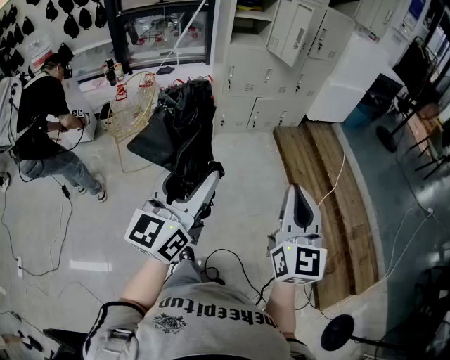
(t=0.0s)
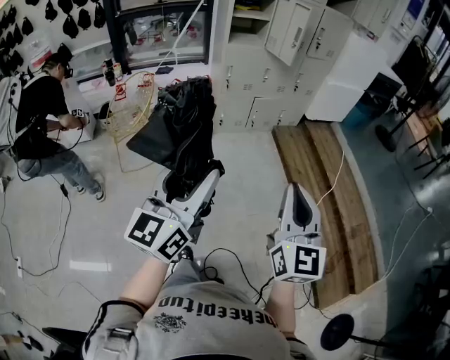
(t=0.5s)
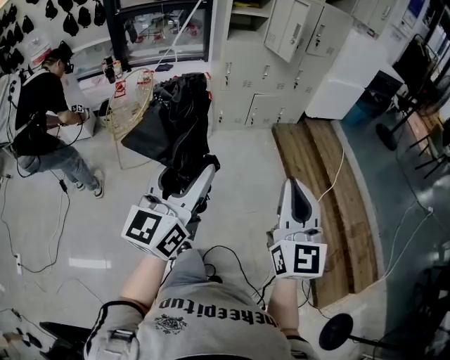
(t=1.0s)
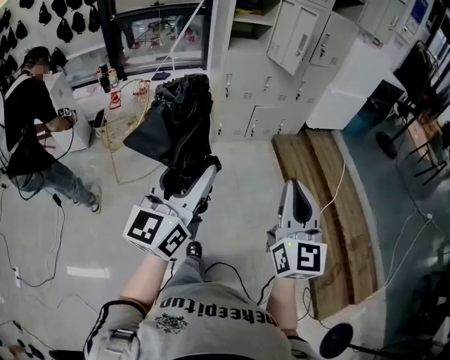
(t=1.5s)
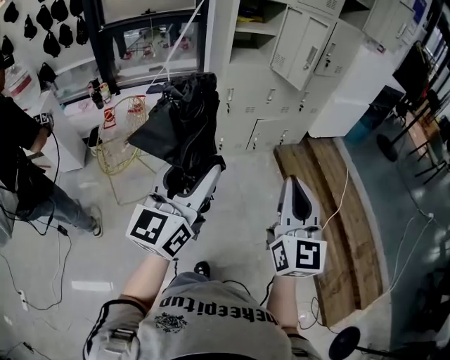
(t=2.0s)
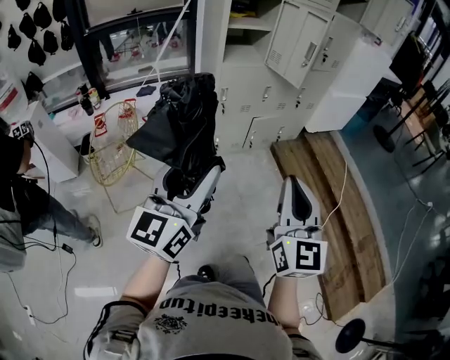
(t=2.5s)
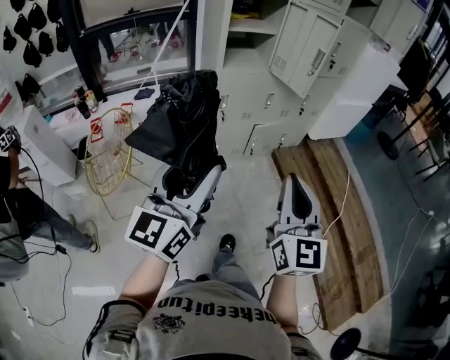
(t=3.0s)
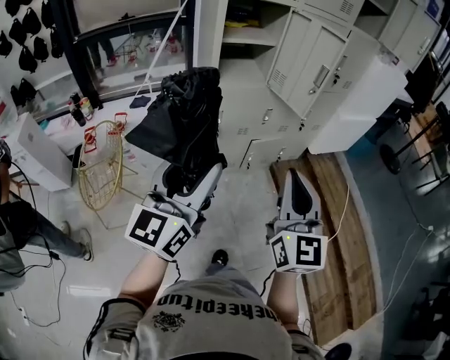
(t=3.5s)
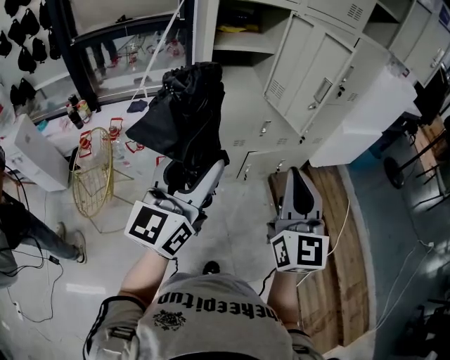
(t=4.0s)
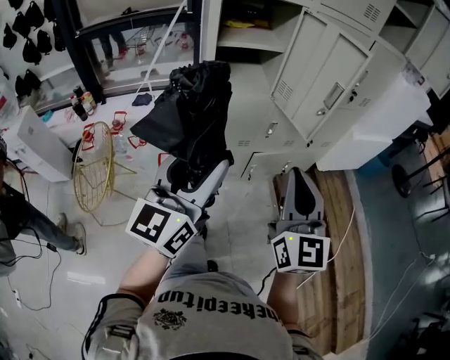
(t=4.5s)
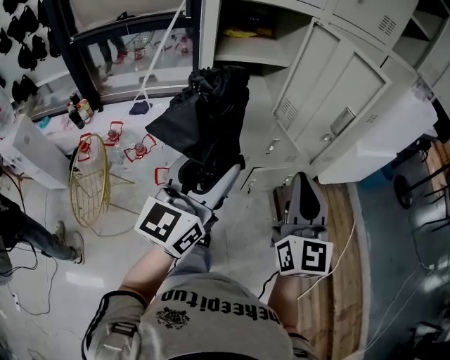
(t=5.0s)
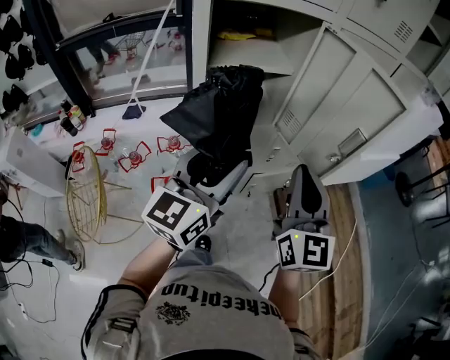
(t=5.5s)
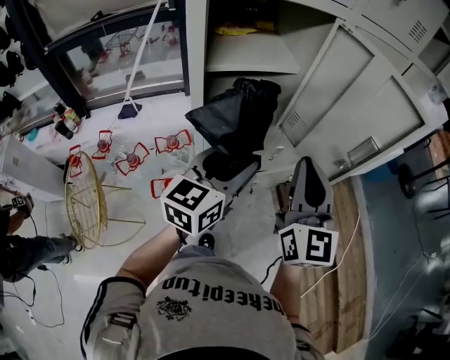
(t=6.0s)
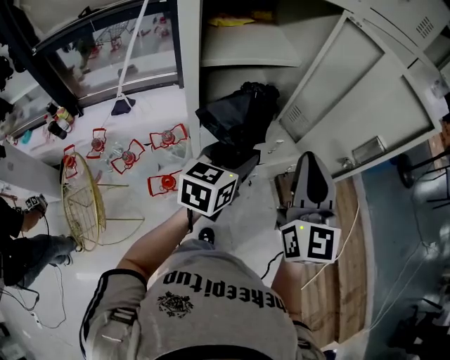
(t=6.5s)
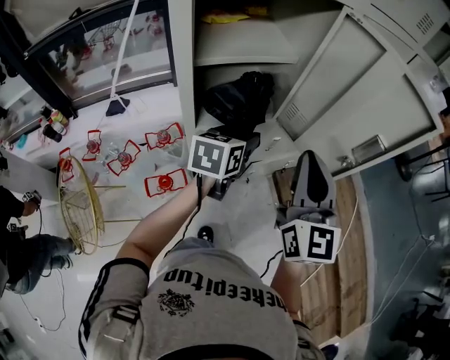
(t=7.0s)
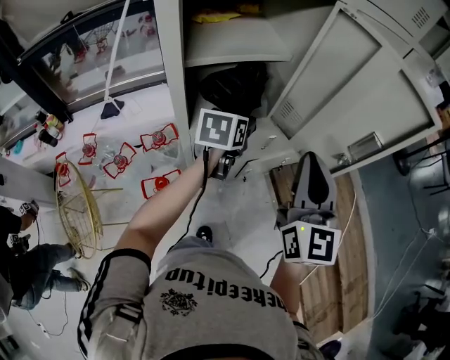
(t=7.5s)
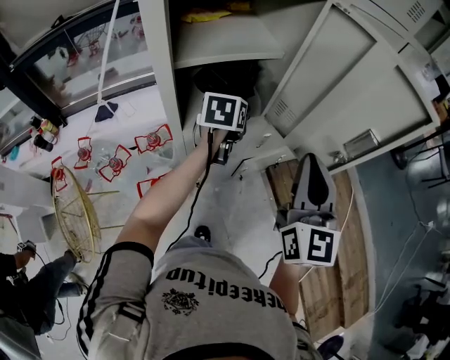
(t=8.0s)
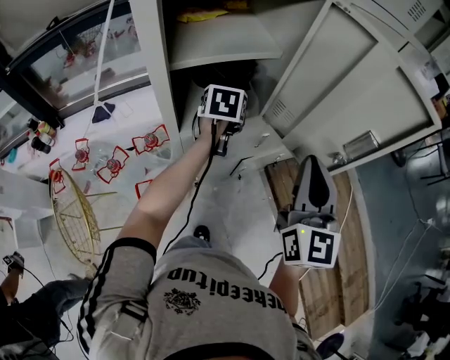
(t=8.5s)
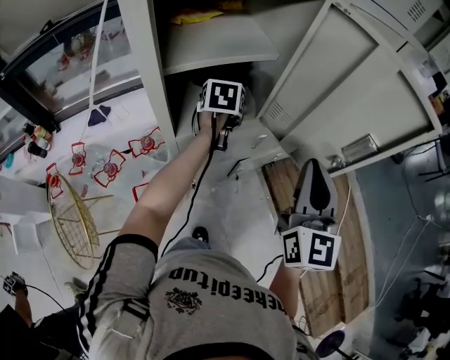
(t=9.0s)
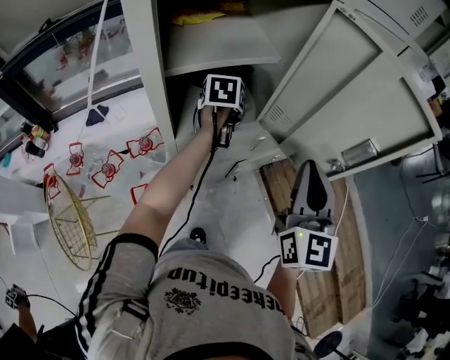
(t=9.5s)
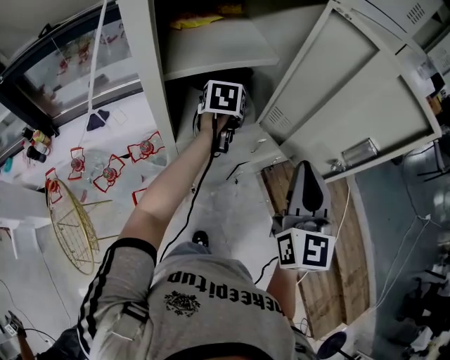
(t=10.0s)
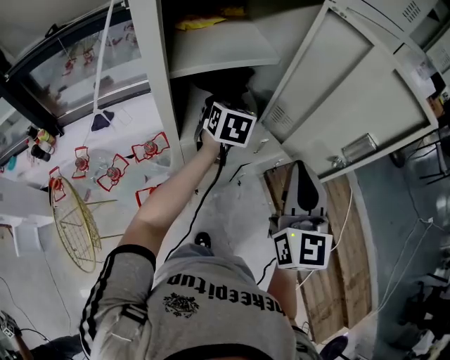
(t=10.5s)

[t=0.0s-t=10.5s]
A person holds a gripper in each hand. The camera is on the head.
t=0.0s to t=2.0s: The grippers both shift forward and to the left by approximately 25 cm.
t=2.0s to t=4.0s: The grippers both shift forward by some 40 cm.
t=4.0s to t=6.5s: The right gripper heads forward, covering approximately 30 cm; the left gripper heads forward and downward, covering about 40 cm, and points its fingers roughly 30 degrees further downward.
t=6.5s to t=8.5s: The left gripper heads forward, covering some 20 cm, and changes its angle by approximately 20 degrees.
t=8.5s to t=10.5s: There are only small adjustments of the grippers.

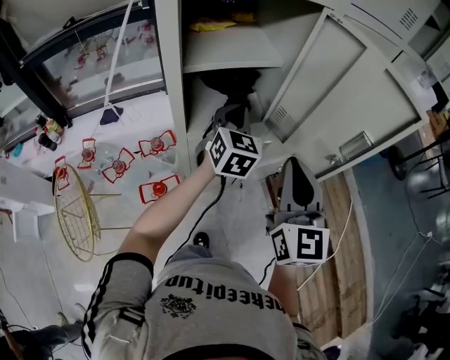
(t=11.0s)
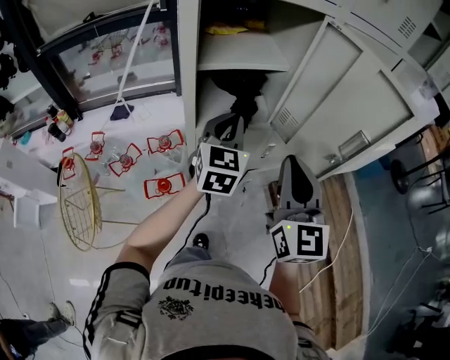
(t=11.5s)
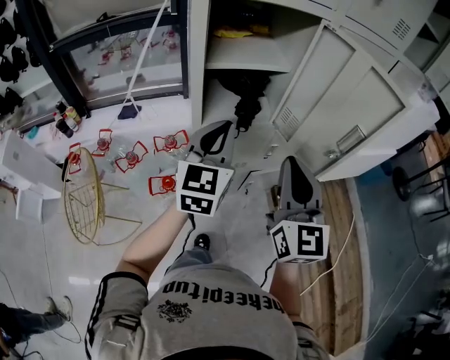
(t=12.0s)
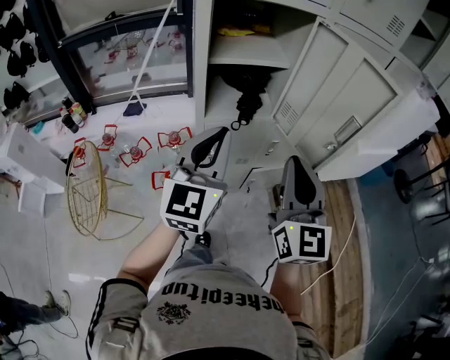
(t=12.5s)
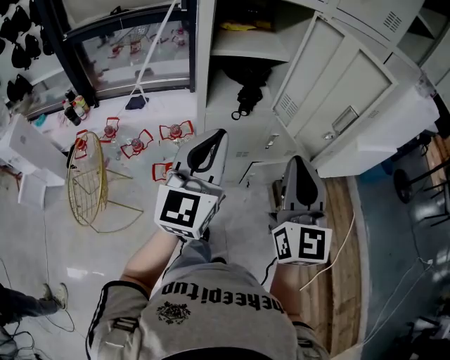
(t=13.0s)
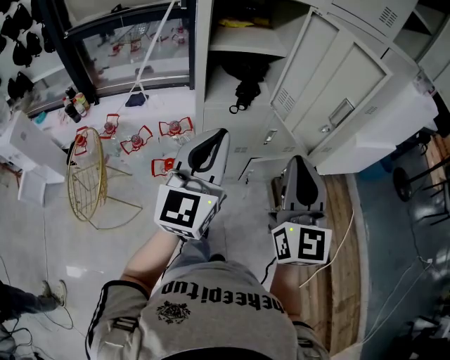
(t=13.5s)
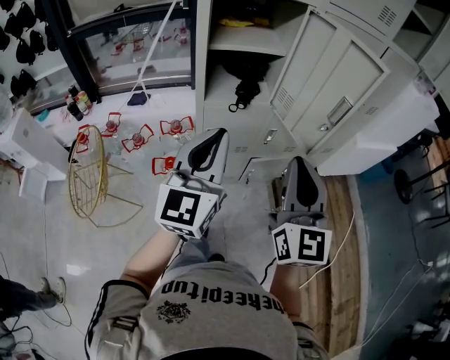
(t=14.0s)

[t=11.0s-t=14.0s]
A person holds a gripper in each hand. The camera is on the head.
t=11.0s to t=12.5s: The left gripper heads backward and upward, covering some 25 cm, and rotates about 30 degrees. The right gripper heads backward, covering about 10 cm.
t=12.5s to t=14.0s: Both grippers travel together backward, approximately 5 cm.

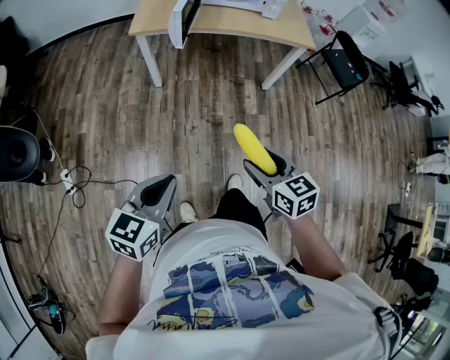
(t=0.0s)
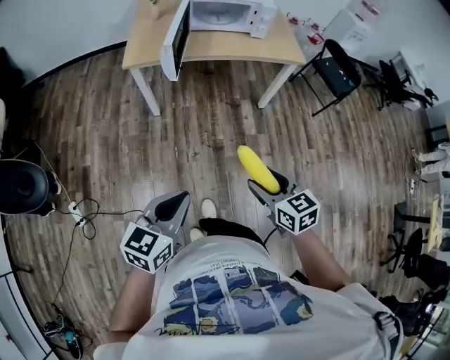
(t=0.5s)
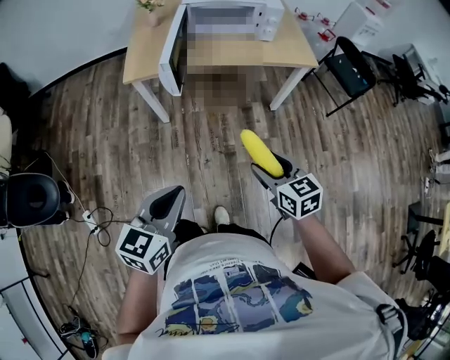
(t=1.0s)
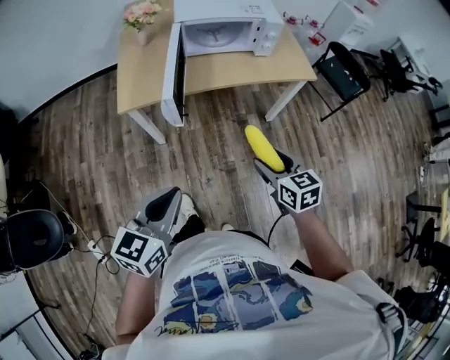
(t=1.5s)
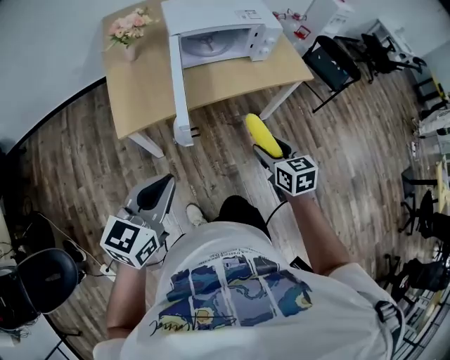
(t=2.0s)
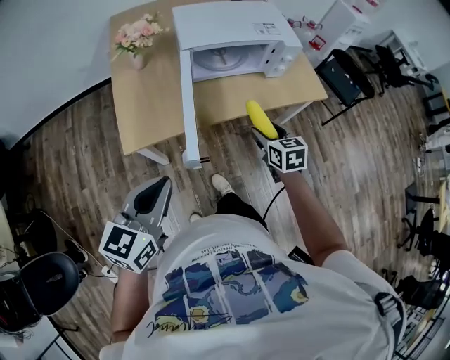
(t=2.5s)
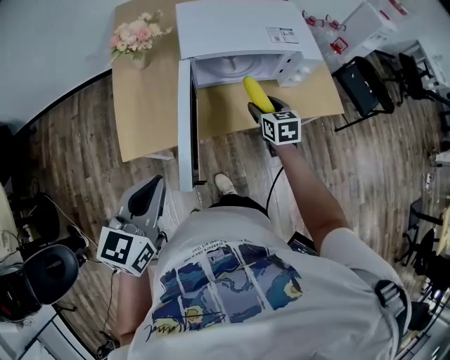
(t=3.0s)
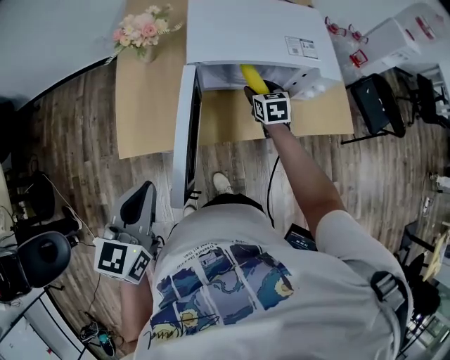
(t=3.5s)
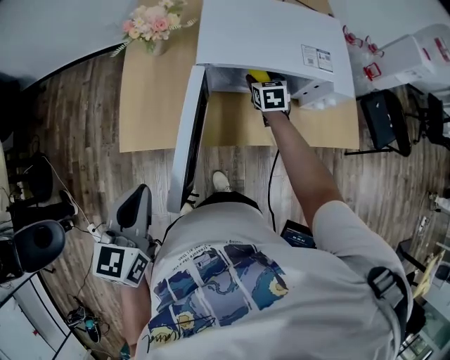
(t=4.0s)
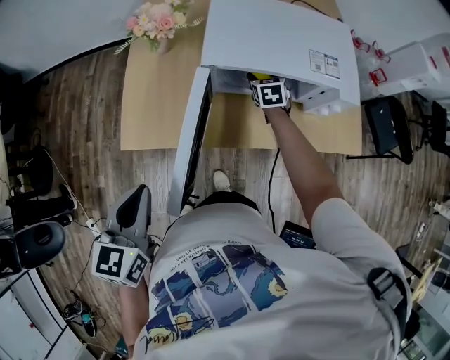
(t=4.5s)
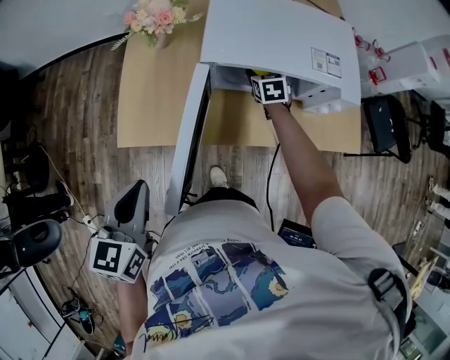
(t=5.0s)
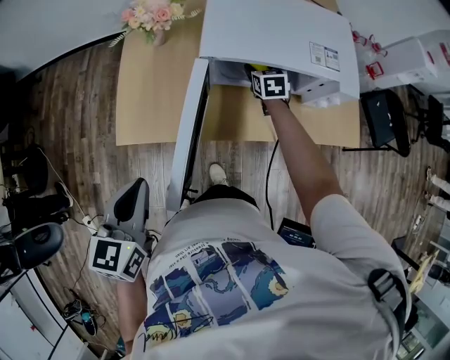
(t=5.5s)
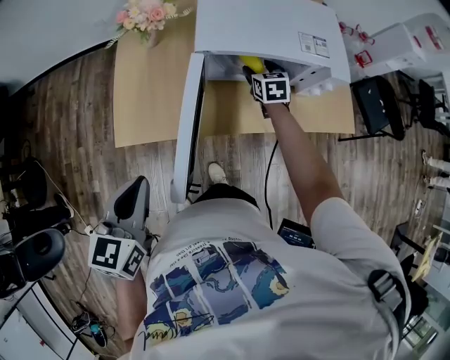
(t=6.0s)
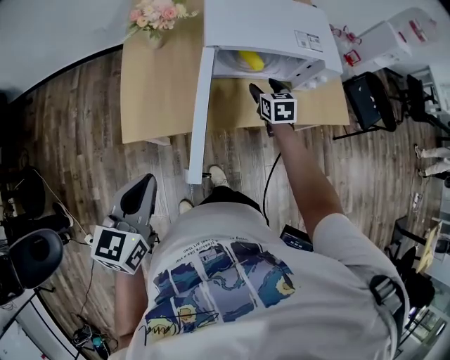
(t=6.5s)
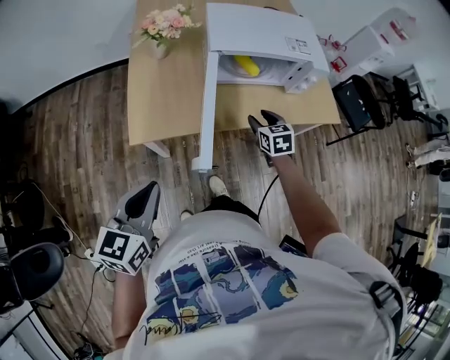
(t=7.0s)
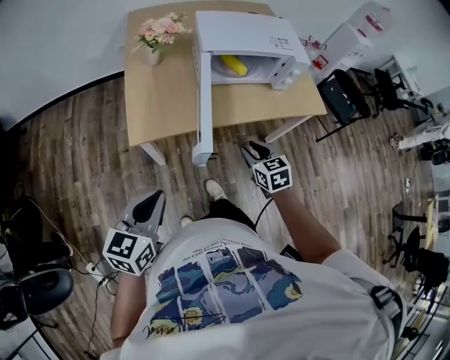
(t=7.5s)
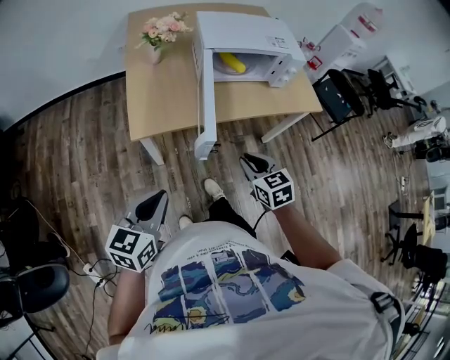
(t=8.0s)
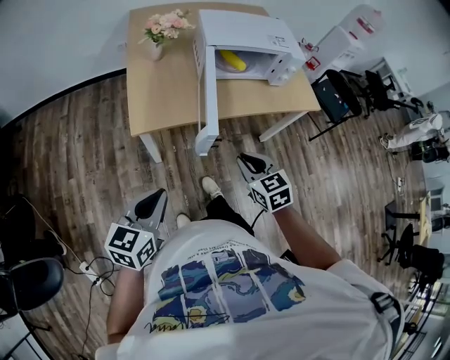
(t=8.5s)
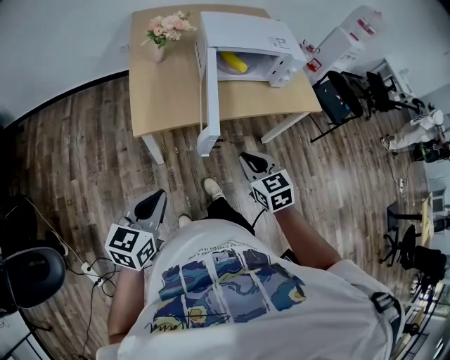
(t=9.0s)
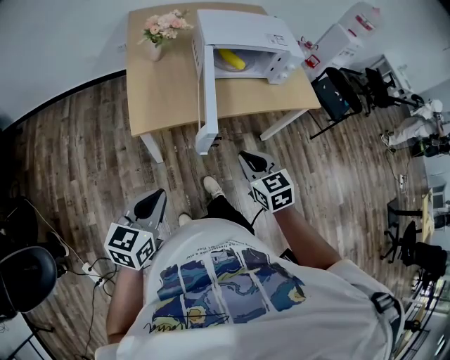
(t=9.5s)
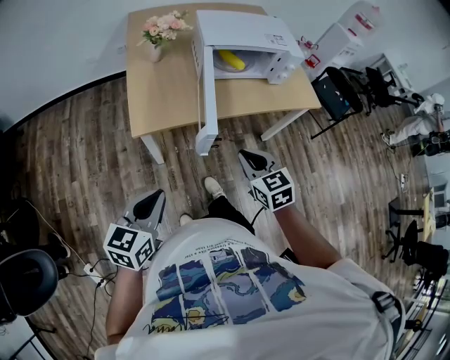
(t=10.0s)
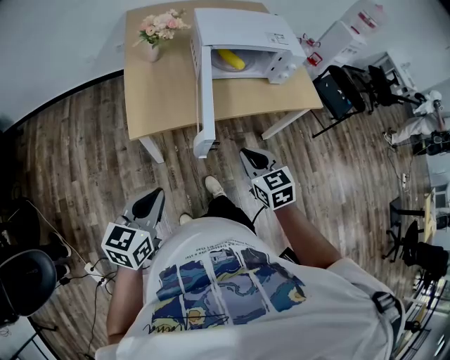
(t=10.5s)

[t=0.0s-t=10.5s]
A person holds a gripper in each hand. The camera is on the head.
t=0.0s to t=2.0s: Both grippers travel together forward, approximately 40 cm. The right gripper changes its angle by some 20 degrees.
t=2.0s to t=4.0s: The left gripper shifts about 20 cm forward, and swivels roughly 40 degrees. Meanwhile the right gripper moves forward, some 50 cm.
t=4.0s to t=6.5s: The left gripper changes place by roughly 5 cm, while the right gripper moves backward, some 10 cm.
t=6.5s to t=8.5s: The right gripper travels backward by approximately 40 cm, and closes up. The left gripper moves backward, some 15 cm.
t=8.5s to t=10.5s: There are only small adjustments of the grippers.

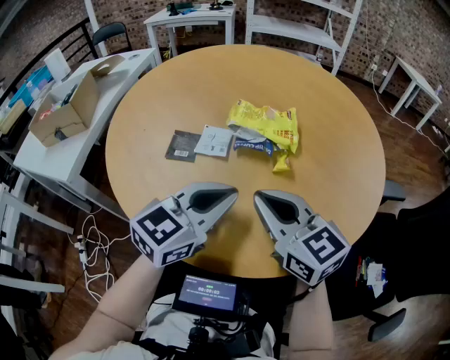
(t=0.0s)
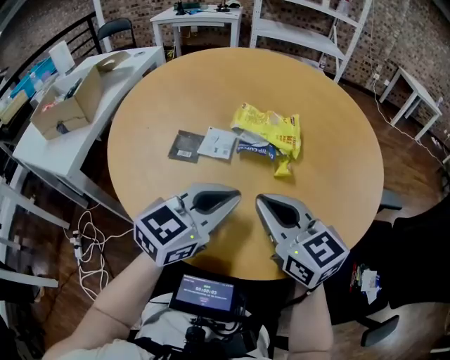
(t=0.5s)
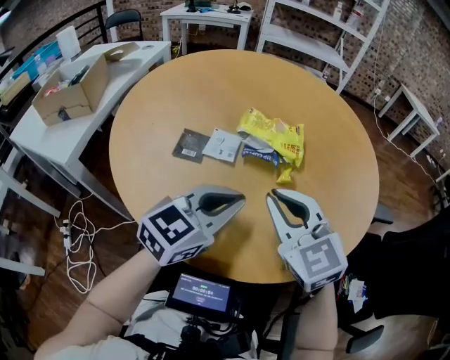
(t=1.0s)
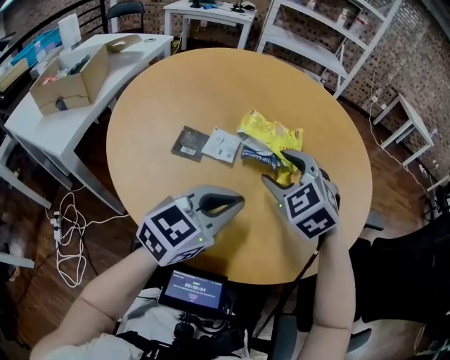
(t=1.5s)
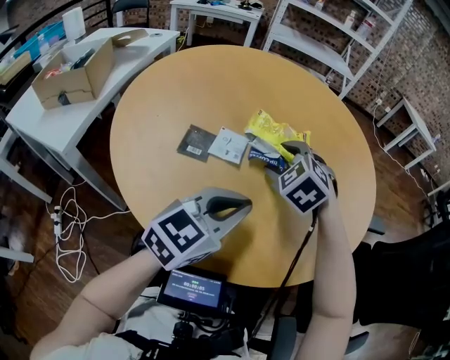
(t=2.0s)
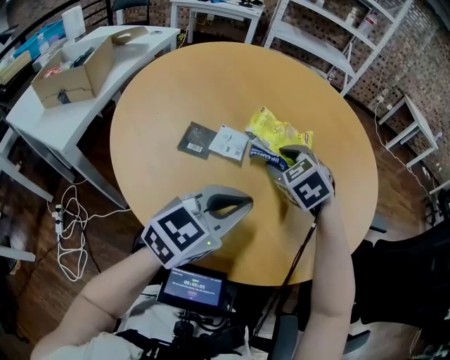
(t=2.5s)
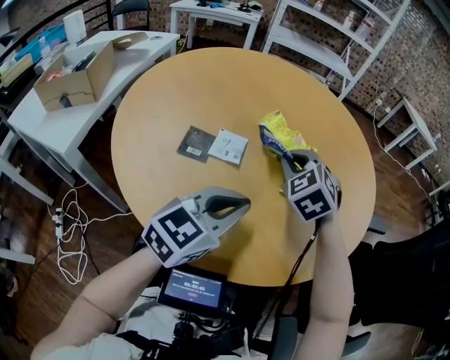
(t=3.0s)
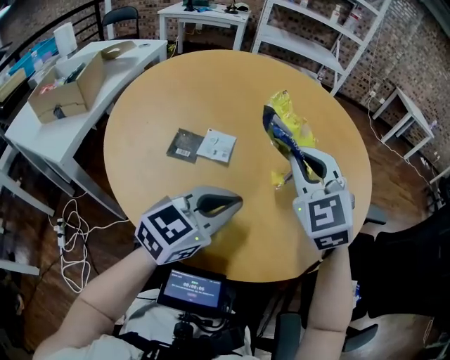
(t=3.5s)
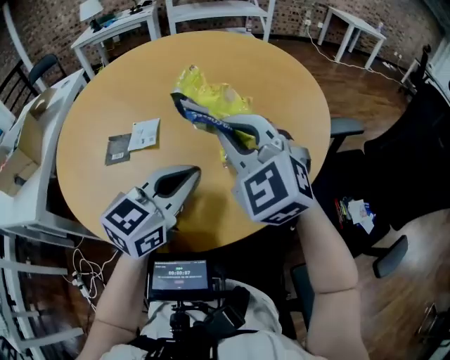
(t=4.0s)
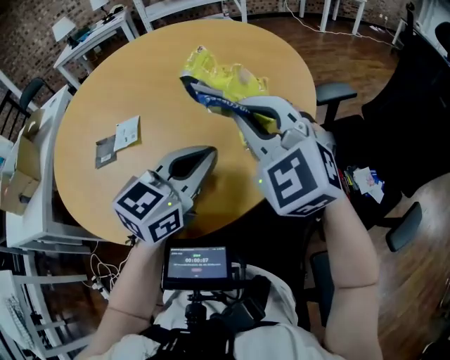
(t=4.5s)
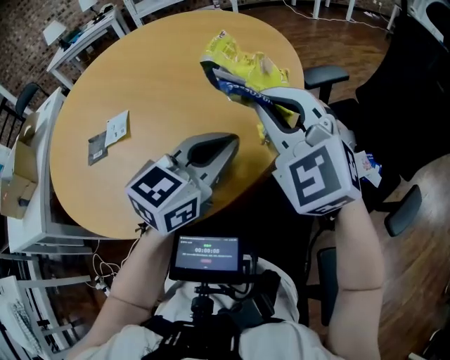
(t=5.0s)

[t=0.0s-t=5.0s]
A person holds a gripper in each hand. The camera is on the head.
t=0.0s to t=2.5s: The right gripper goes about 15 cm forward and downward, tilts its fingers some 40 degrees downward, and opens its fingers.
t=2.5s to t=5.0s: The right gripper goes approximately 30 cm to the right, backward and upward, points its fingers about 40 degrees further upward, and closes up, while the left gripper moves to the right, approximately 20 cm.
